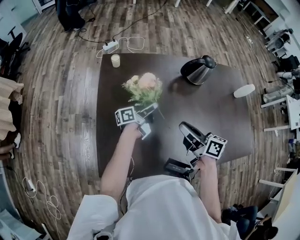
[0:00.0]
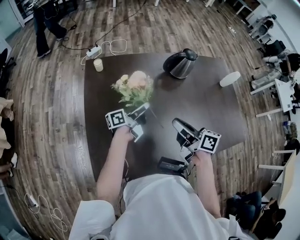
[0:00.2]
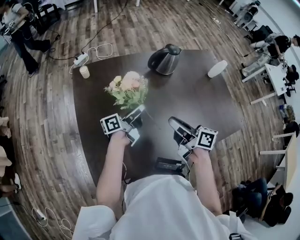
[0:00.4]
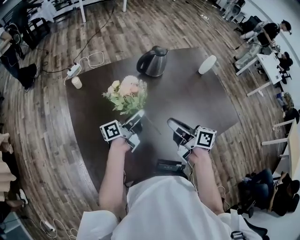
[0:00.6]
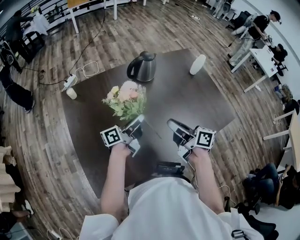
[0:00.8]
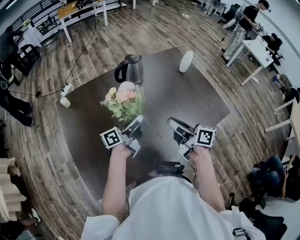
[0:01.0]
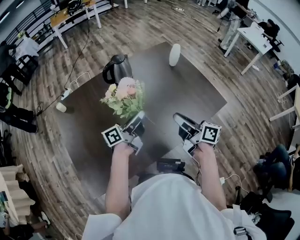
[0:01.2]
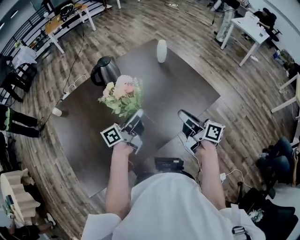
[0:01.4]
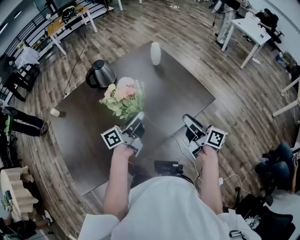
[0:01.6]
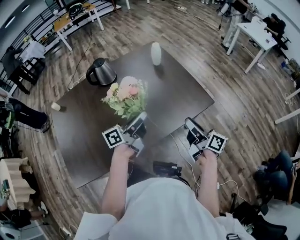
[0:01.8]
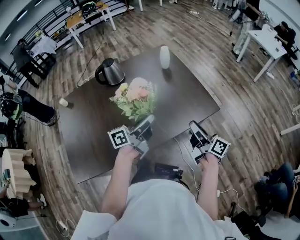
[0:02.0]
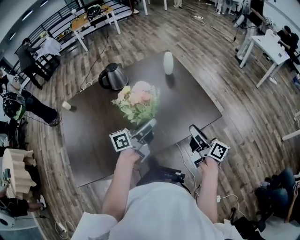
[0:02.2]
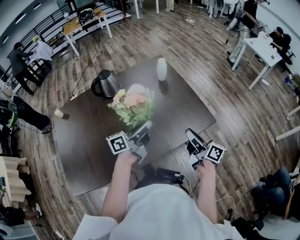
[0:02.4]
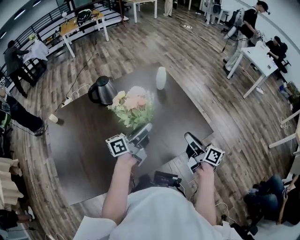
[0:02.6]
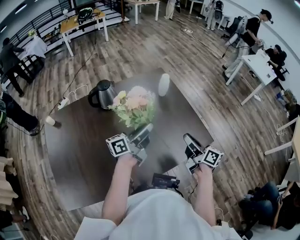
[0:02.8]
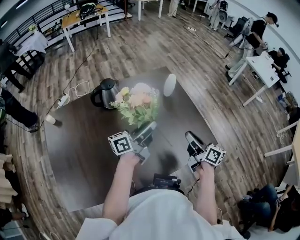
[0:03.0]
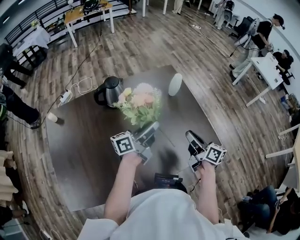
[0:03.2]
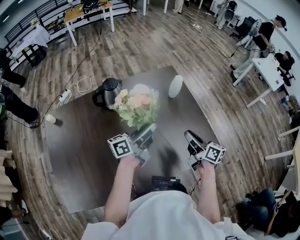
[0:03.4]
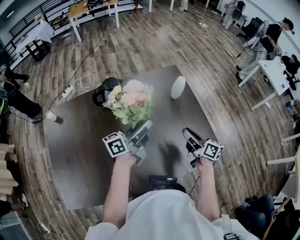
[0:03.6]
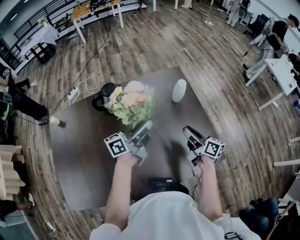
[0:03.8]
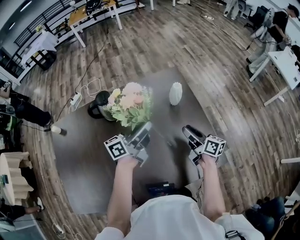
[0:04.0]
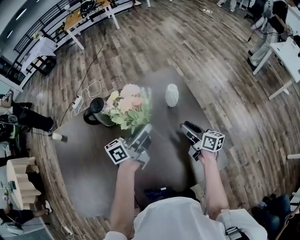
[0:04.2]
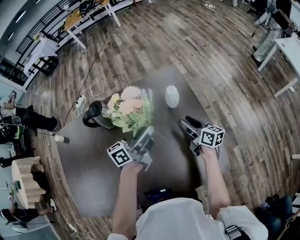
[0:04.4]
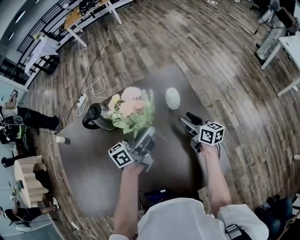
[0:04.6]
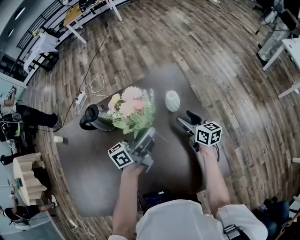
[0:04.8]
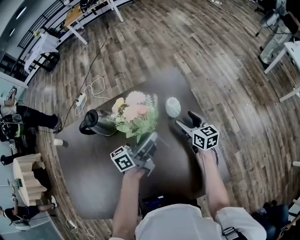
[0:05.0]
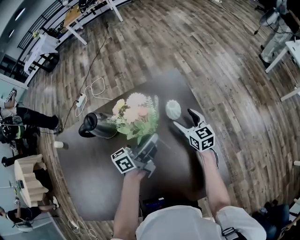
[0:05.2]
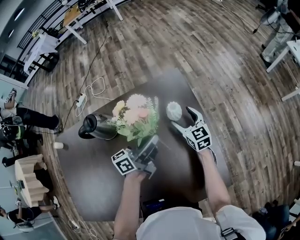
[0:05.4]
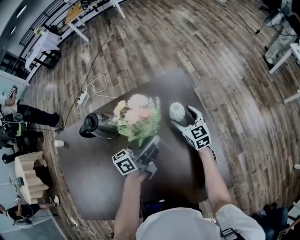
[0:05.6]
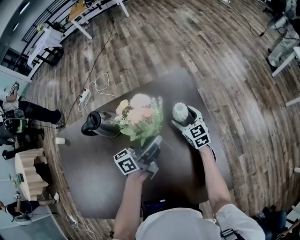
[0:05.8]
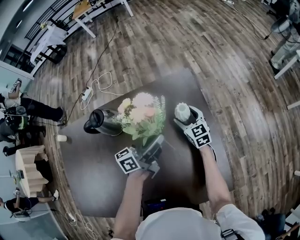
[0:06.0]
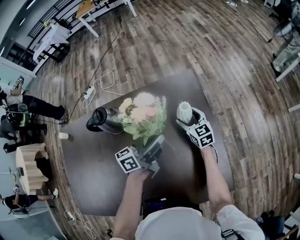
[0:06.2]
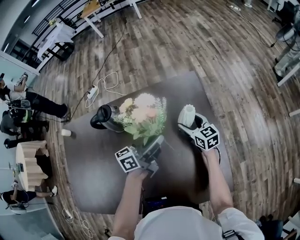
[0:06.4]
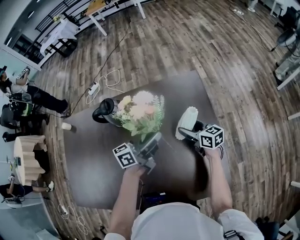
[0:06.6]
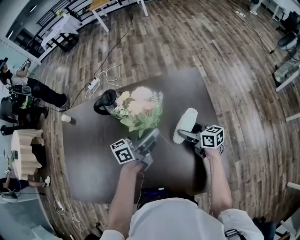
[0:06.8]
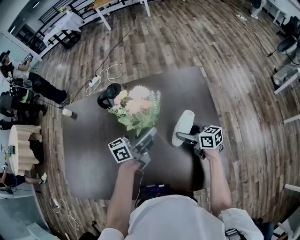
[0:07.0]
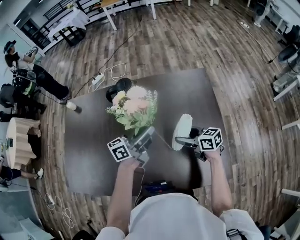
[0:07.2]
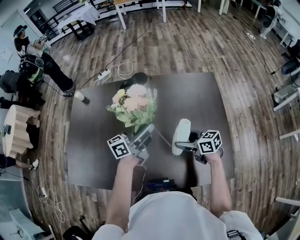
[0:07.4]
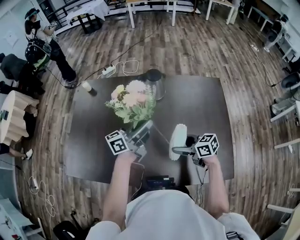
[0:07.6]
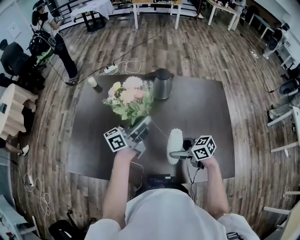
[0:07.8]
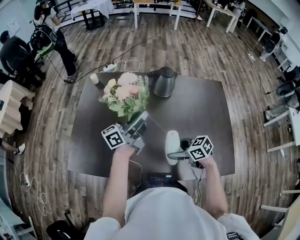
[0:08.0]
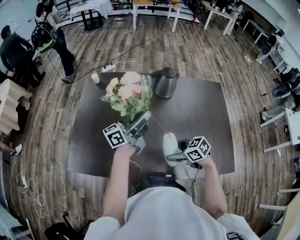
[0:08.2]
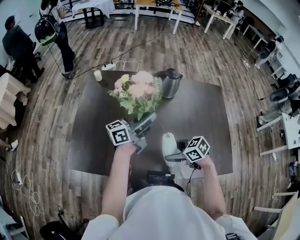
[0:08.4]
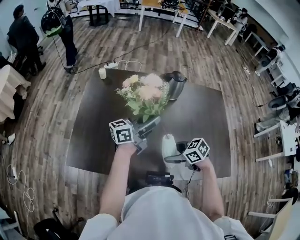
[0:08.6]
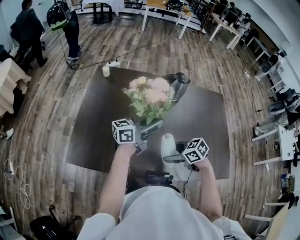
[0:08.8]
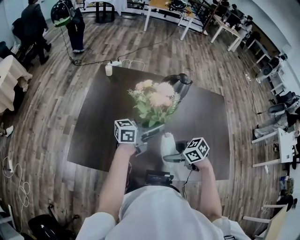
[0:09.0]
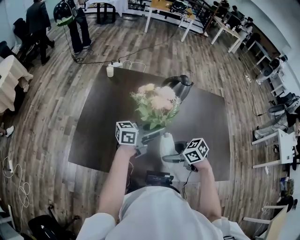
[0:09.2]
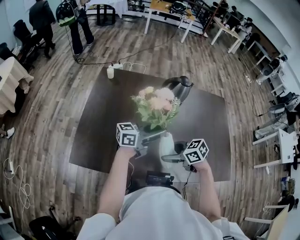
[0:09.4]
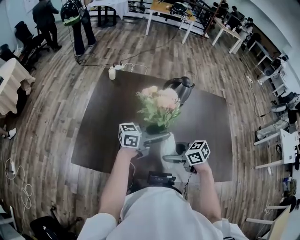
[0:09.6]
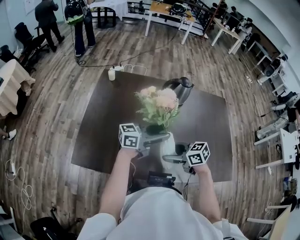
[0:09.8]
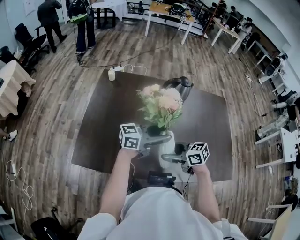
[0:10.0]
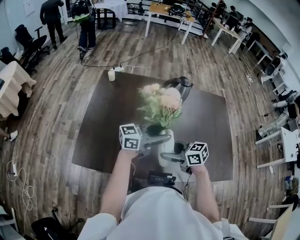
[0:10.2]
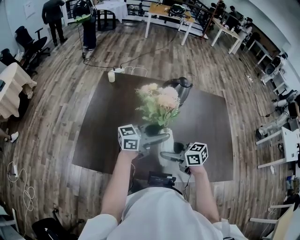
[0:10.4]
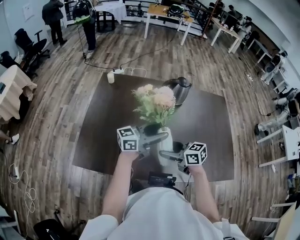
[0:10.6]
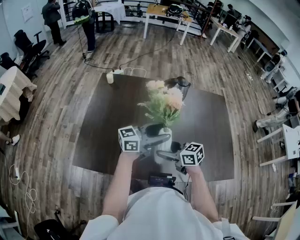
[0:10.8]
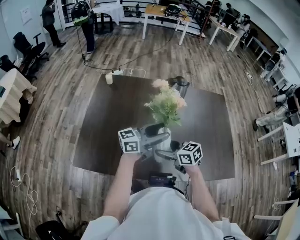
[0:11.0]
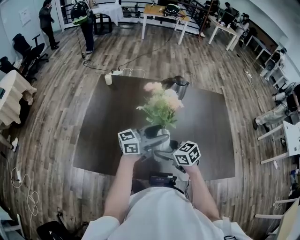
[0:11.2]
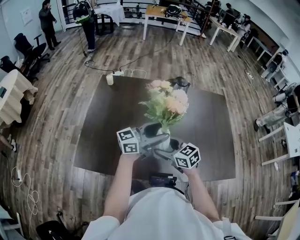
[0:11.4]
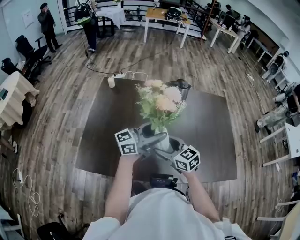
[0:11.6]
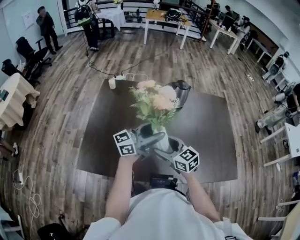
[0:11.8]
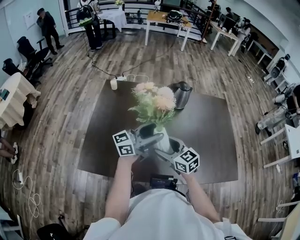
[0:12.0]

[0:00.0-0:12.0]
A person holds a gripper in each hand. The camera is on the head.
0:00.0 to 0:01.6: The pair of grippers is taken about 40 cm. The left gripper swivels approximately 30 degrees. Meanwhile the right gripper changes its angle by roughly 40 degrees.
0:01.6 to 0:03.0: The grippers both shift forward by roughly 15 cm.
0:03.0 to 0:04.4: The right gripper is displaced forward and downward by approximately 30 cm; the left gripper moves forward, approximately 20 cm.
0:04.4 to 0:06.0: The left gripper ends up some 5 cm from where it was. Meanwhile the right gripper shifts approximately 15 cm forward, to the left and downward, rolls counterclockwise, seen from behind, by roughly 40 degrees, and opens.
0:06.0 to 0:07.6: The left gripper ends up some 30 cm from where it was. The right gripper ends up roughly 40 cm from where it was, and swivels some 50 degrees.
0:07.6 to 0:09.0: The left gripper moves about 15 cm; the right gripper moves some 20 cm, and changes its angle by approximately 20 degrees.
0:09.0 to 0:10.4: The right gripper shifts by some 5 cm, and turns by approximately 20 degrees, while the left gripper opens its fingers.
0:10.4 to 0:12.0: The right gripper changes its angle by some 30 degrees.

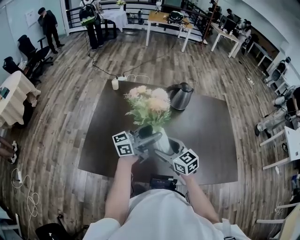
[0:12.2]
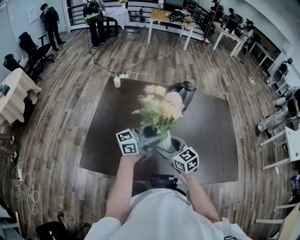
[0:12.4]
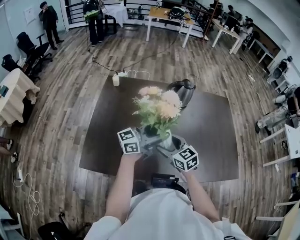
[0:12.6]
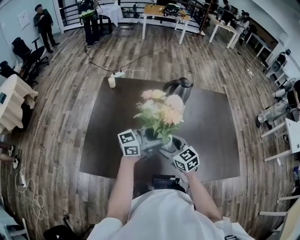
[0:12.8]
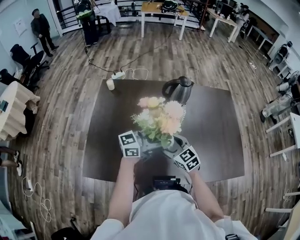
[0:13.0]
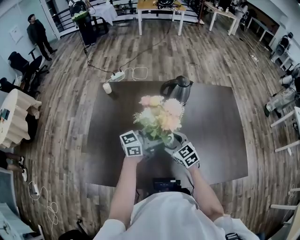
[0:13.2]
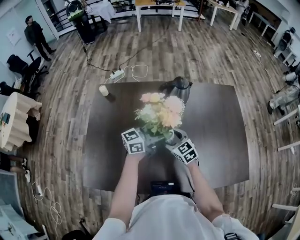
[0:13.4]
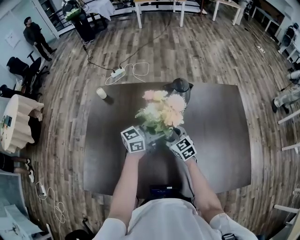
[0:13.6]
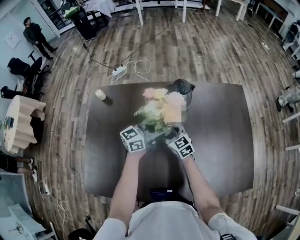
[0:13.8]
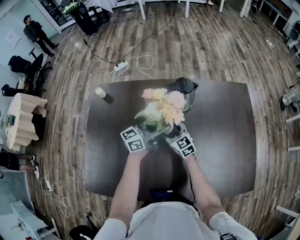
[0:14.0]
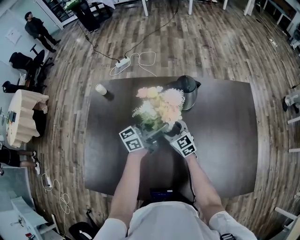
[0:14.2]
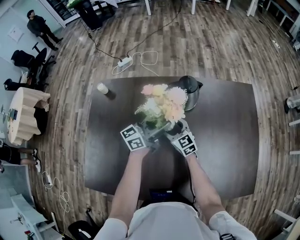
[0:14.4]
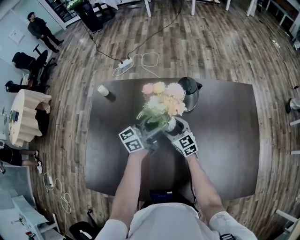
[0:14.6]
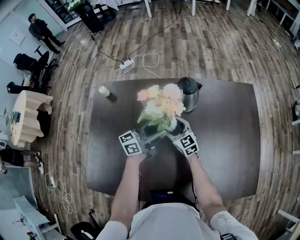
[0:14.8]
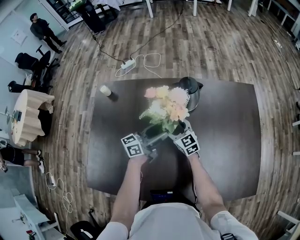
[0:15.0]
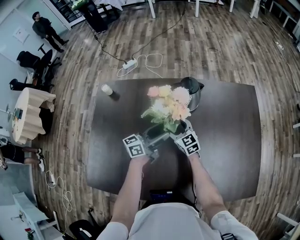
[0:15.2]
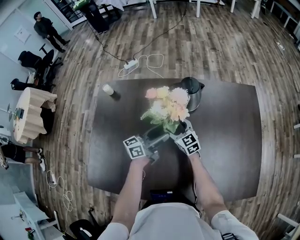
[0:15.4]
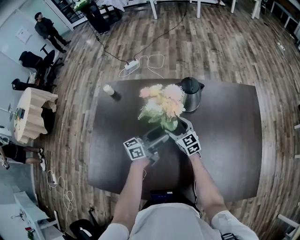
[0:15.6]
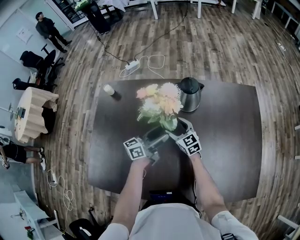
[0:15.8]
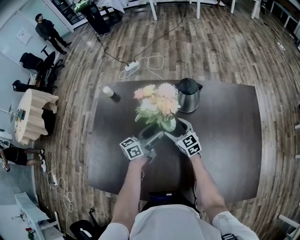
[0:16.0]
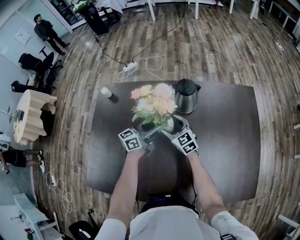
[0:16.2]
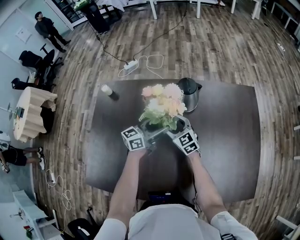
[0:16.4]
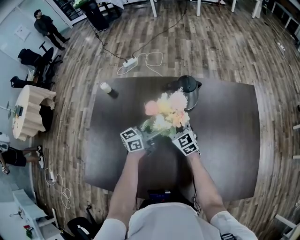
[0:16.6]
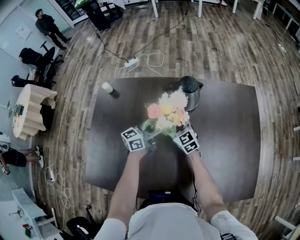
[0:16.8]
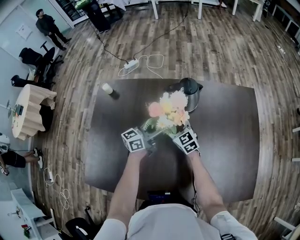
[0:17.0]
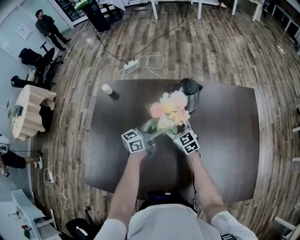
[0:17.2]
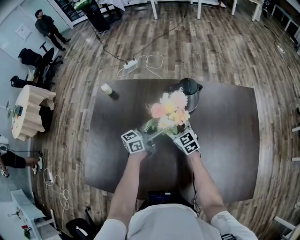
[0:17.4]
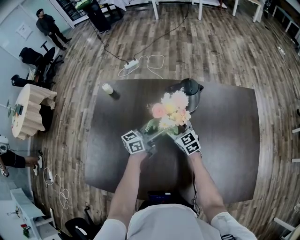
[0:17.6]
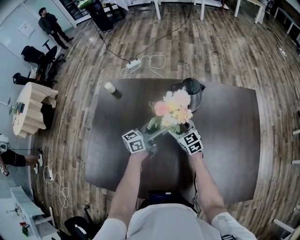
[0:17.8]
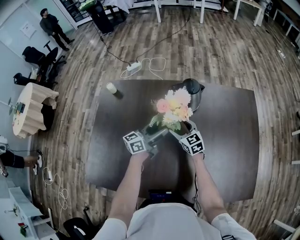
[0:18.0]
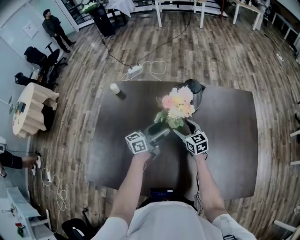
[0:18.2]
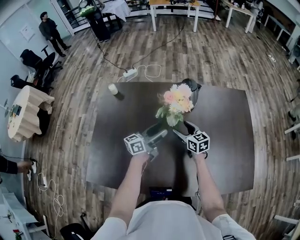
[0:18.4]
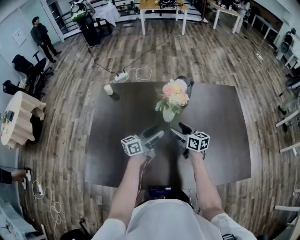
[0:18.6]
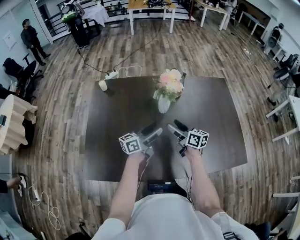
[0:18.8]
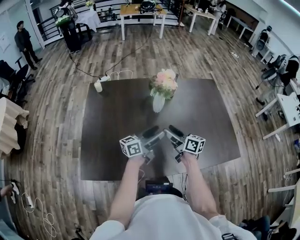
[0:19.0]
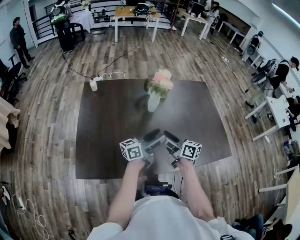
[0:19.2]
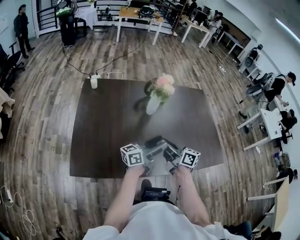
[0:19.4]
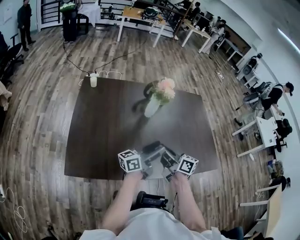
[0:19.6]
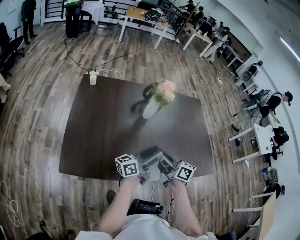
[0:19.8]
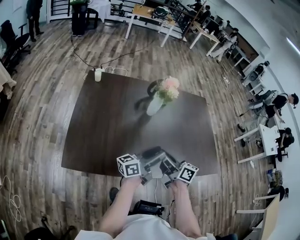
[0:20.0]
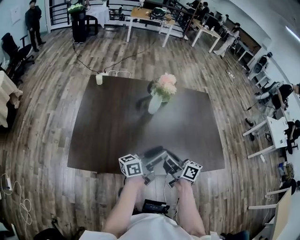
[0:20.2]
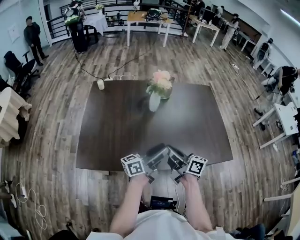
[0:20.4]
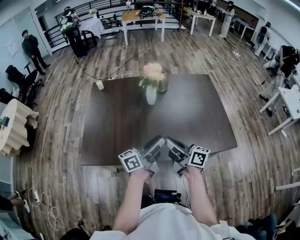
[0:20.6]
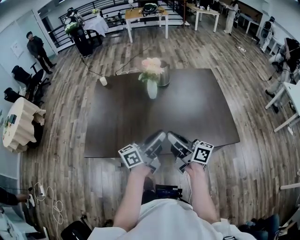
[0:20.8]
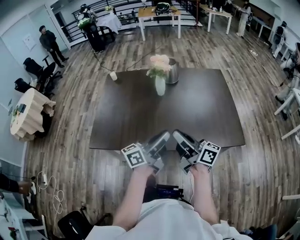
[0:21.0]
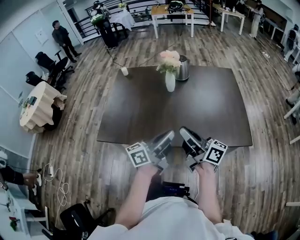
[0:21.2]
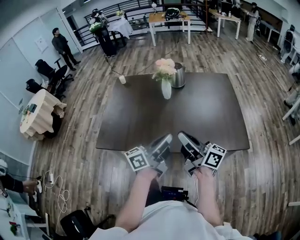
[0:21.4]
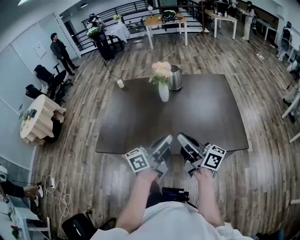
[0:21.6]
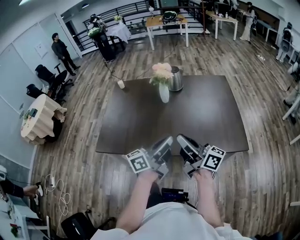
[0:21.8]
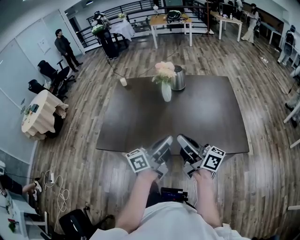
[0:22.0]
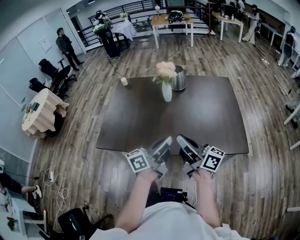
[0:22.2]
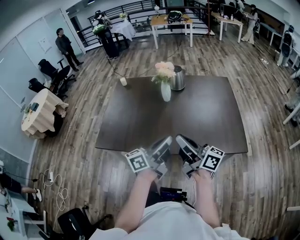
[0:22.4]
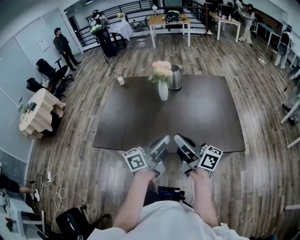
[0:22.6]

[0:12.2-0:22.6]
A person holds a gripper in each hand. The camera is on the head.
0:12.2 to 0:13.6: The right gripper goes approximately 20 cm forward and downward; the left gripper shifts about 20 cm forward, to the right and downward, and swivels some 20 degrees.
0:13.6 to 0:15.2: The right gripper moves forward, some 5 cm. Meanwhile the left gripper heads downward, covering roughly 10 cm, and swivels approximately 20 degrees.
0:15.2 to 0:18.2: The grippers make only small movements.
0:18.2 to 0:19.6: The left gripper travels backward by about 25 cm, and changes its angle by approximately 20 degrees; the right gripper goes approximately 30 cm backward and upward, rotates some 40 degrees, and closes up.
0:19.6 to 0:21.2: The left gripper travels backward and upward by about 15 cm, and closes up, while the right gripper heads backward, upward and to the right, covering approximately 20 cm, and rotates about 30 degrees.
0:21.2 to 0:22.6: There are only small adjustments of the grippers.

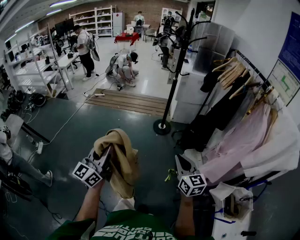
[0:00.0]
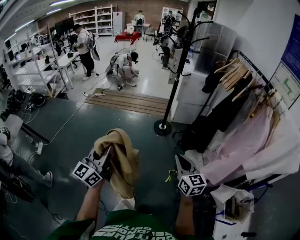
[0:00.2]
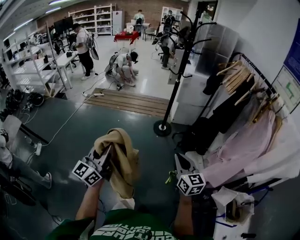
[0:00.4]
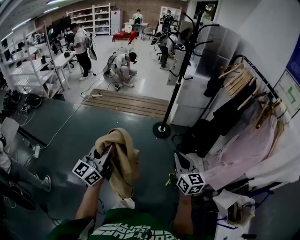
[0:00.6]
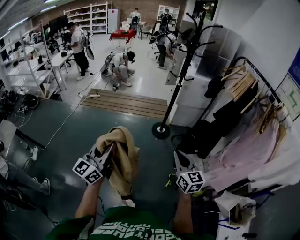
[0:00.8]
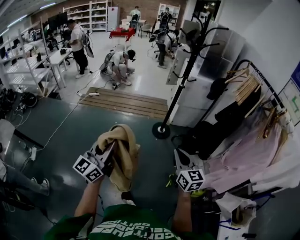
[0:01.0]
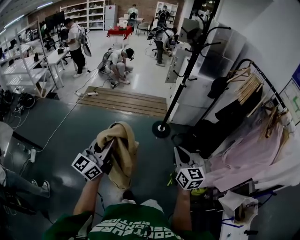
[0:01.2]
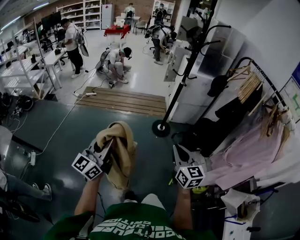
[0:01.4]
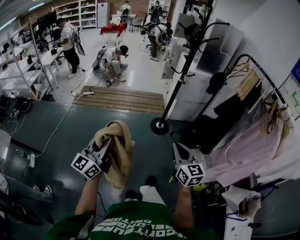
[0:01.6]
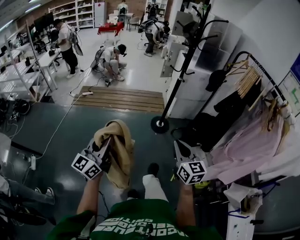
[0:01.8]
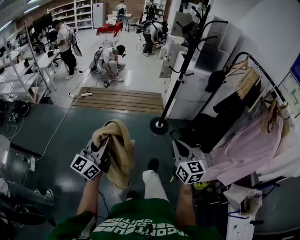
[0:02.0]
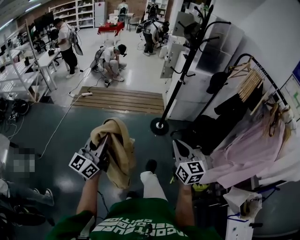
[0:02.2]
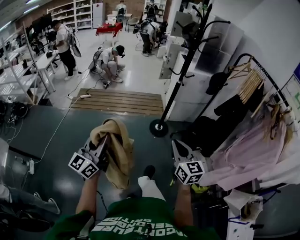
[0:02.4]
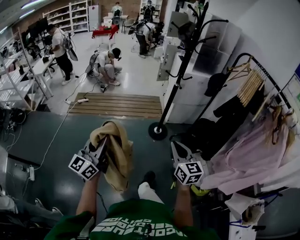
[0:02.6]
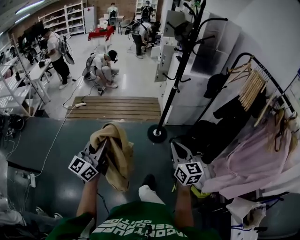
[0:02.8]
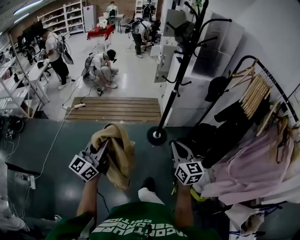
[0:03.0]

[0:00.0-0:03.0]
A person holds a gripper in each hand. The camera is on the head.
0:00.0 to 0:01.6: The left gripper moves forward and to the left, roughly 25 cm. The right gripper moves to the left and forward, roughly 25 cm.
0:01.6 to 0:03.0: Both grippers move forward, roughly 20 cm.
